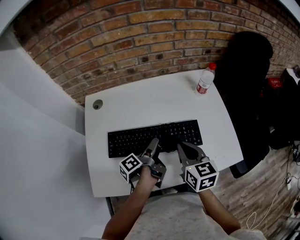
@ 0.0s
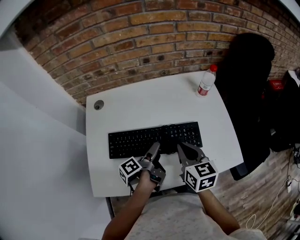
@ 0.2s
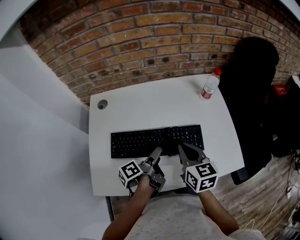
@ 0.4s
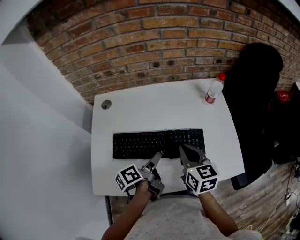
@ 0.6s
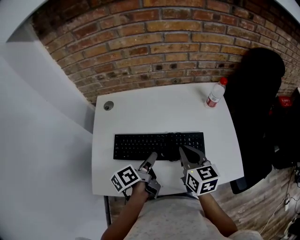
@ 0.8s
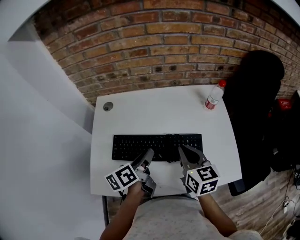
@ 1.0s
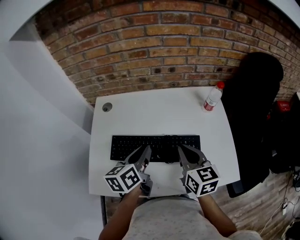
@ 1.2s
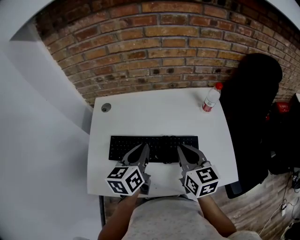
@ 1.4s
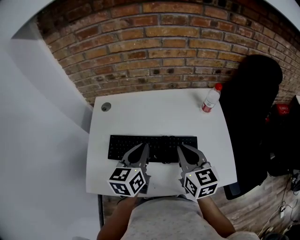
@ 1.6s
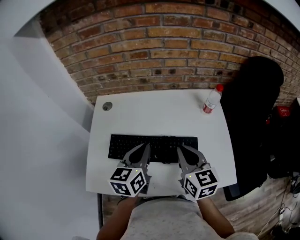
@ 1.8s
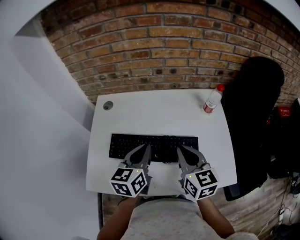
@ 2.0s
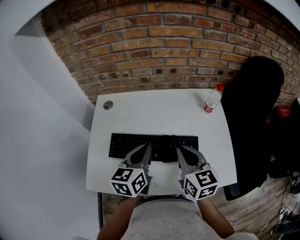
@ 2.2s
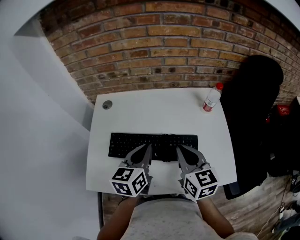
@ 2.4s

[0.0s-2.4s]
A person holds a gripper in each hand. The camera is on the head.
0.0s to 1.2s: The right gripper moves some 5 cm.

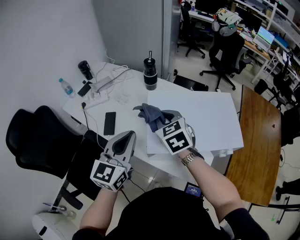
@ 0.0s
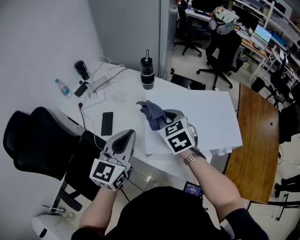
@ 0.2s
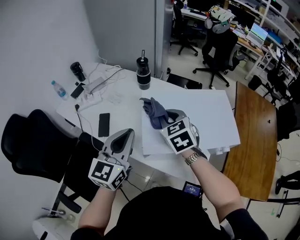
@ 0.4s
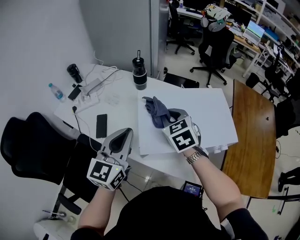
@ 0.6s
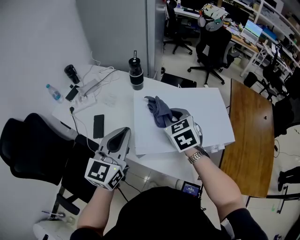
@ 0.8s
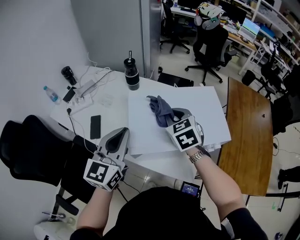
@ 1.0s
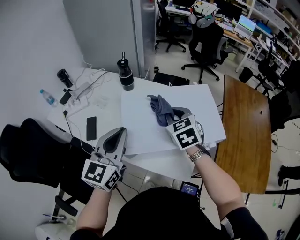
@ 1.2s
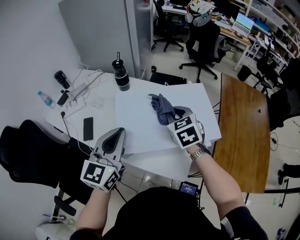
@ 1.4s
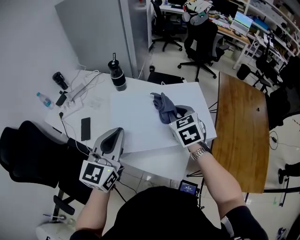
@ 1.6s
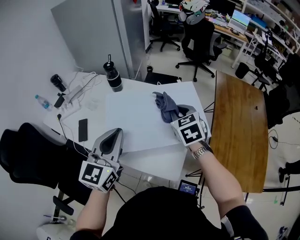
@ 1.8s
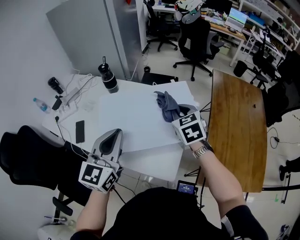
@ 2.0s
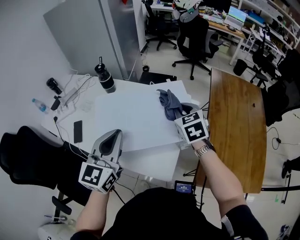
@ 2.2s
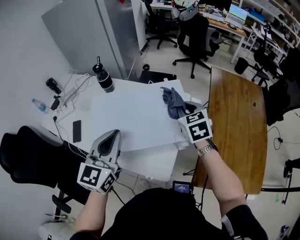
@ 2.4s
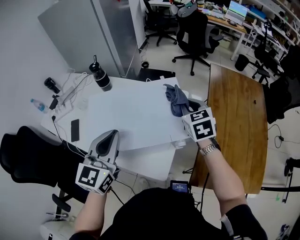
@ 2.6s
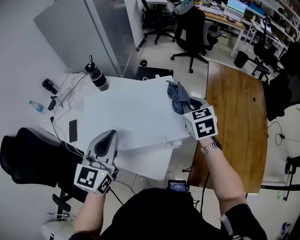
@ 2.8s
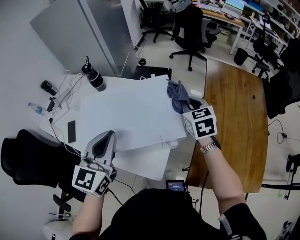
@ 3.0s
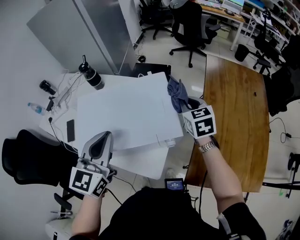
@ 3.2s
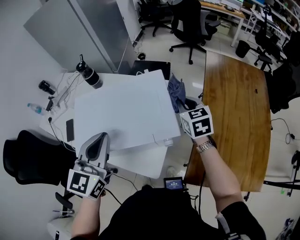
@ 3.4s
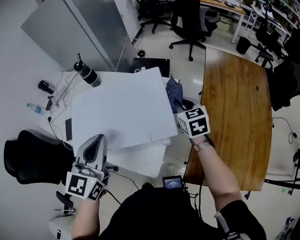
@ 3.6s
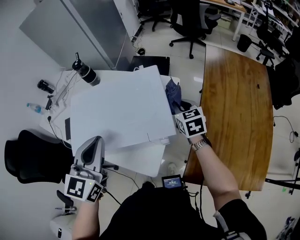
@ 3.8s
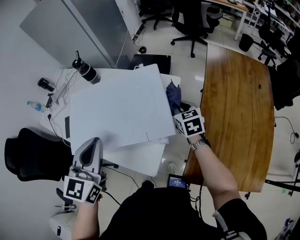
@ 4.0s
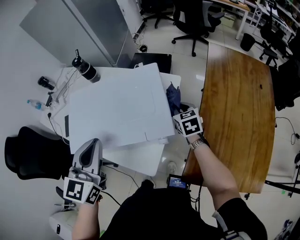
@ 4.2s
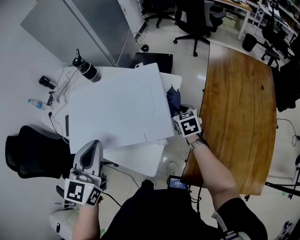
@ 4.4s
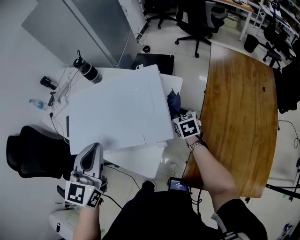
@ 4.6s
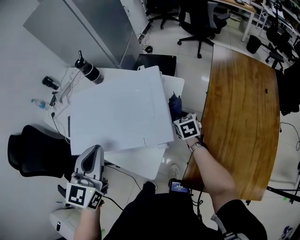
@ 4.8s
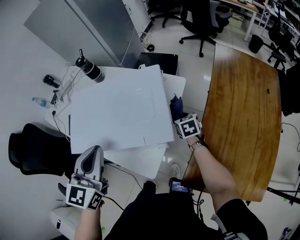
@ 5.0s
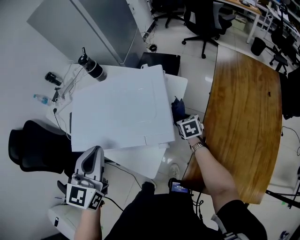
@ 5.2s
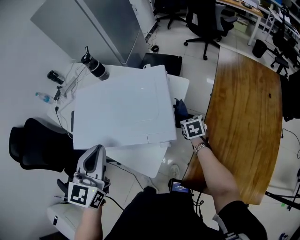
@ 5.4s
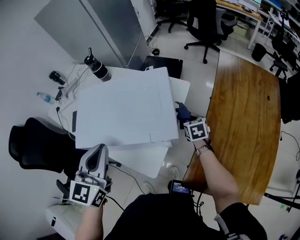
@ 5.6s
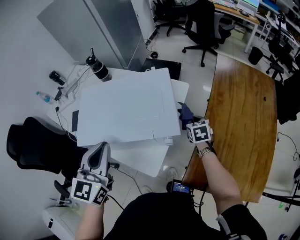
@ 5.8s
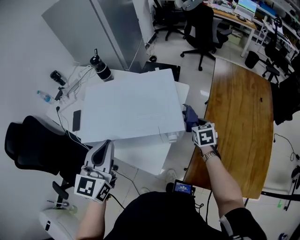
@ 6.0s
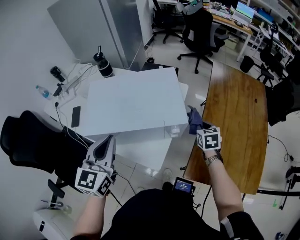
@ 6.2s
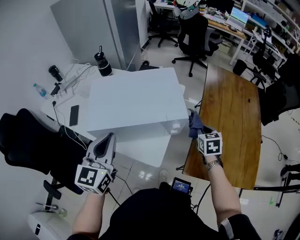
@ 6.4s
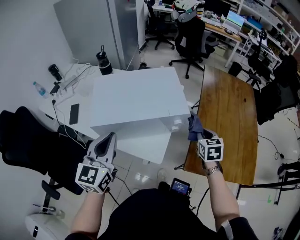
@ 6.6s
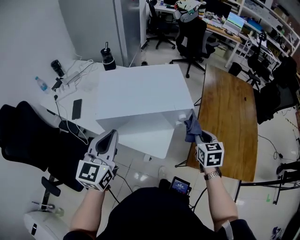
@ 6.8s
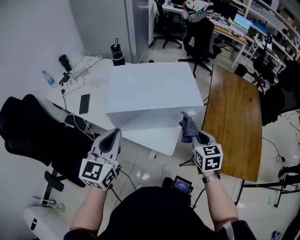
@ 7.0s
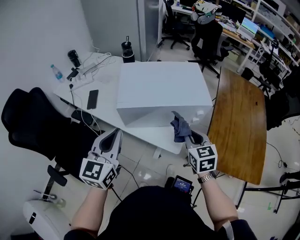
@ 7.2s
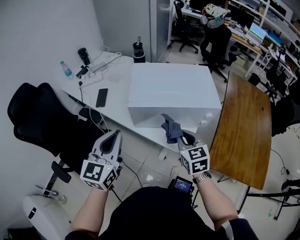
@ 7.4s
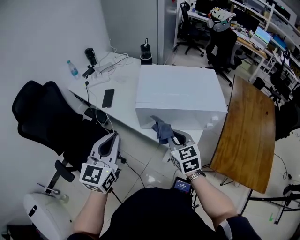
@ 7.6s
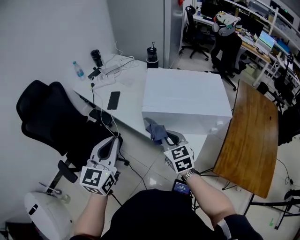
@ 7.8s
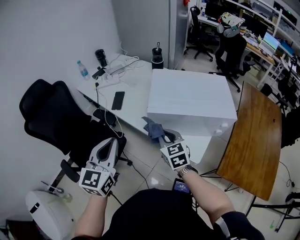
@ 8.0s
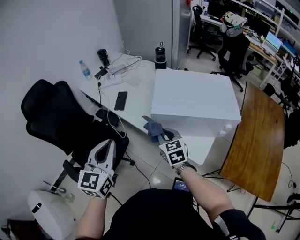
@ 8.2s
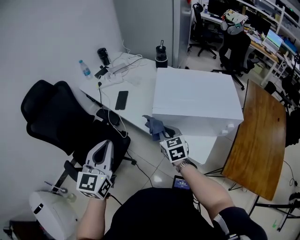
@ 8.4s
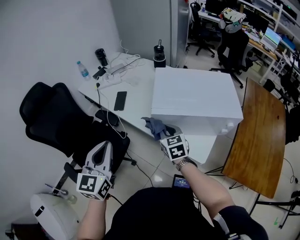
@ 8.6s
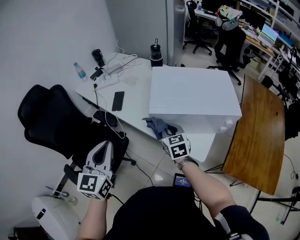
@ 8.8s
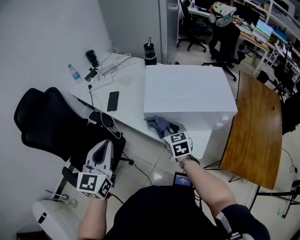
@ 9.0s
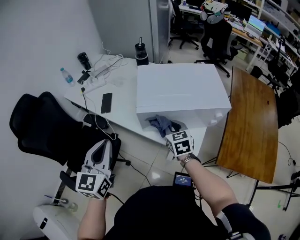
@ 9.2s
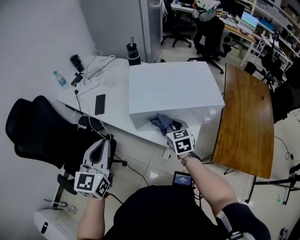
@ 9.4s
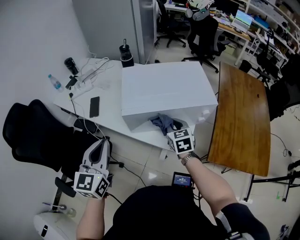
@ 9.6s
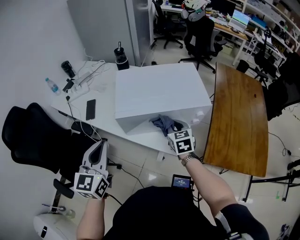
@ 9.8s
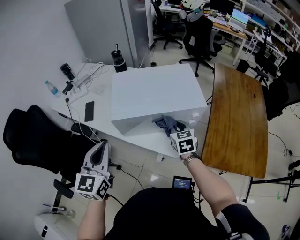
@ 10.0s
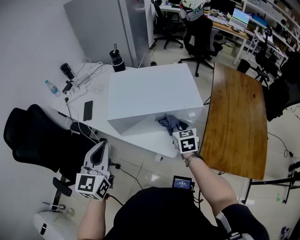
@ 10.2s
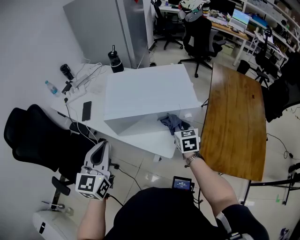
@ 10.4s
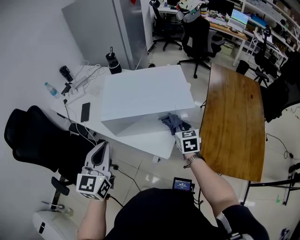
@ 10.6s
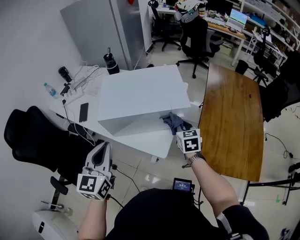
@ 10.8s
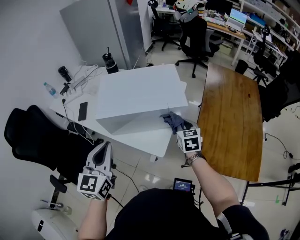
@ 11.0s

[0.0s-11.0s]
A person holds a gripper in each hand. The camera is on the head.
0.0s to 1.6s: The right gripper is displaced to the right by some 20 cm. Meanwhile the left gripper heads to the right, covering about 10 cm.
1.6s to 3.2s: The left gripper heads to the right, covering about 15 cm. Meanwhile the right gripper heads to the right, covering roughly 20 cm.
3.2s to 4.8s: The right gripper is displaced downward by some 20 cm.
4.8s to 6.2s: The left gripper travels backward and to the left by about 5 cm; the right gripper travels backward, upward and to the right by roughly 15 cm.
6.2s to 7.8s: The right gripper shifts by roughly 50 cm, and turns by some 40 degrees, while the left gripper shifts by some 25 cm.
7.8s to 9.4s: The right gripper is displaced to the right and forward by about 10 cm.
9.4s to 11.0s: The grippers both shift to the right by some 20 cm.

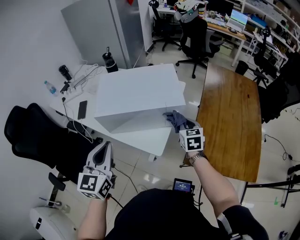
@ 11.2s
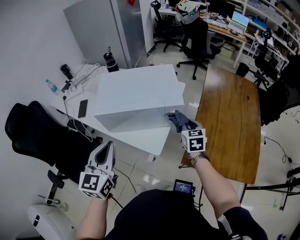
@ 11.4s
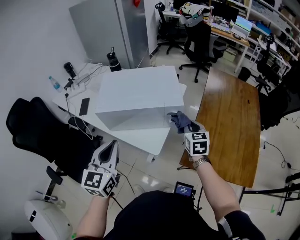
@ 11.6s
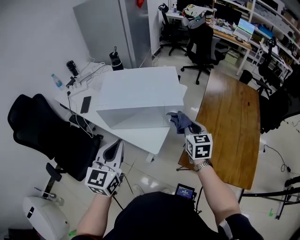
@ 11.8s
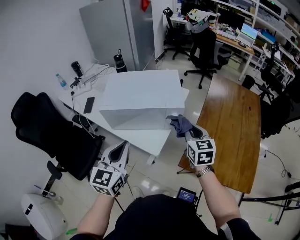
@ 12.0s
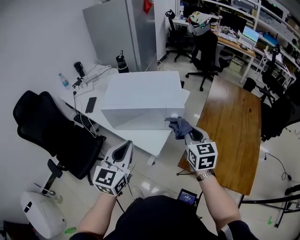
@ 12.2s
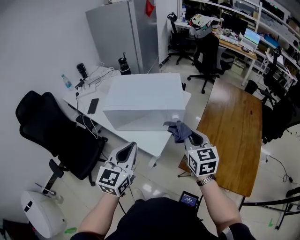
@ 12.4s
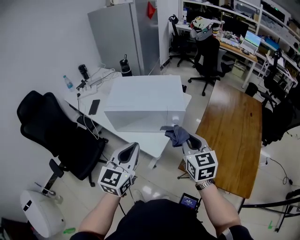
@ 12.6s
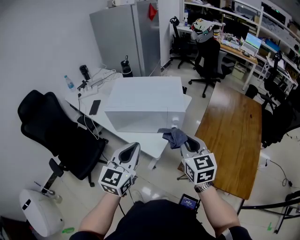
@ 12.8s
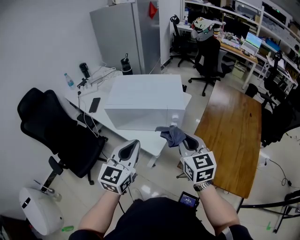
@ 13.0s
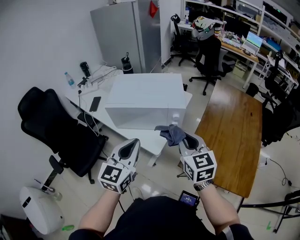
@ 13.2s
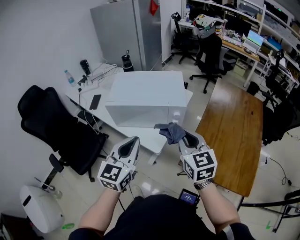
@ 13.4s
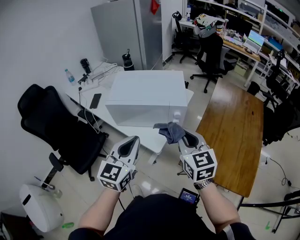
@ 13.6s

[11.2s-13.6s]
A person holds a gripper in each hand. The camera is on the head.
11.2s to 12.4s: The right gripper moves upward and backward, approximately 15 cm. Meanwhile the left gripper goes approximately 10 cm to the right.
12.4s to 13.6s: The right gripper ends up some 5 cm from where it was.

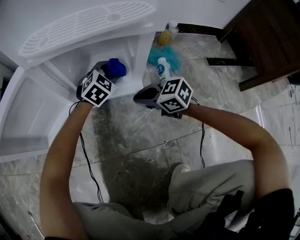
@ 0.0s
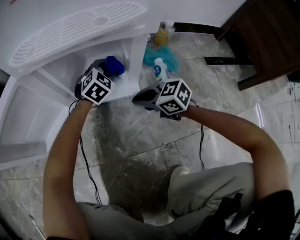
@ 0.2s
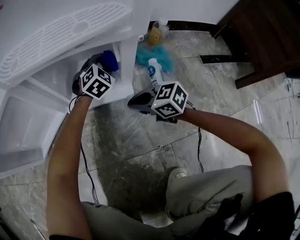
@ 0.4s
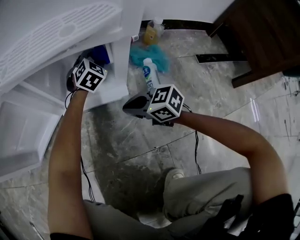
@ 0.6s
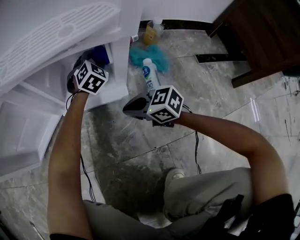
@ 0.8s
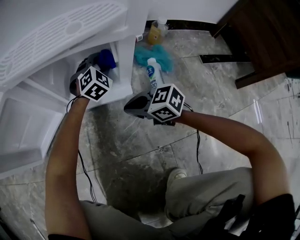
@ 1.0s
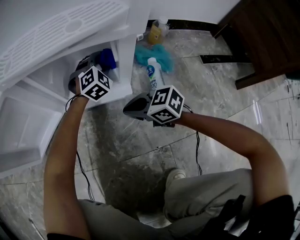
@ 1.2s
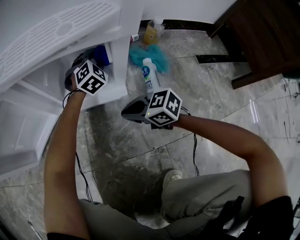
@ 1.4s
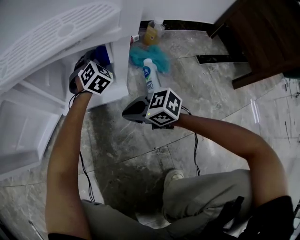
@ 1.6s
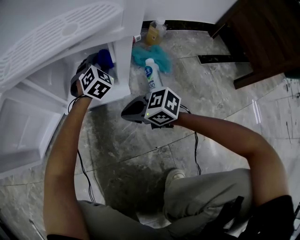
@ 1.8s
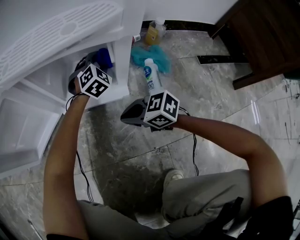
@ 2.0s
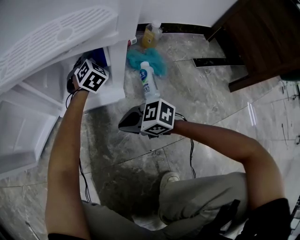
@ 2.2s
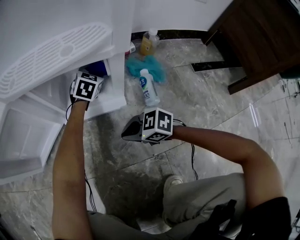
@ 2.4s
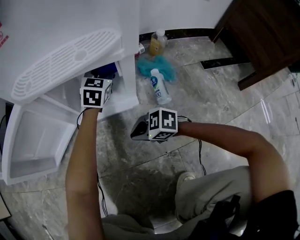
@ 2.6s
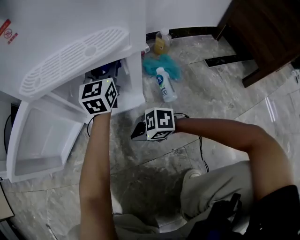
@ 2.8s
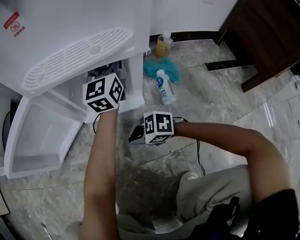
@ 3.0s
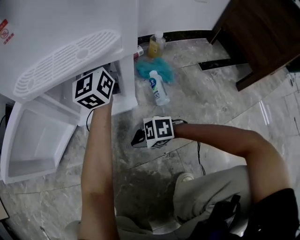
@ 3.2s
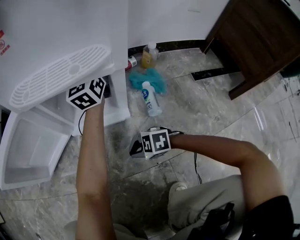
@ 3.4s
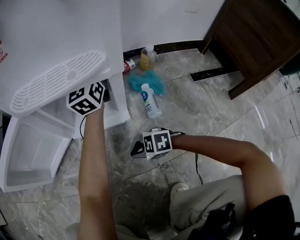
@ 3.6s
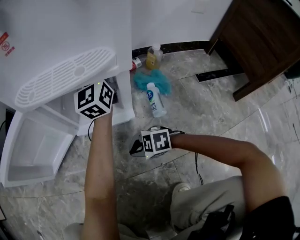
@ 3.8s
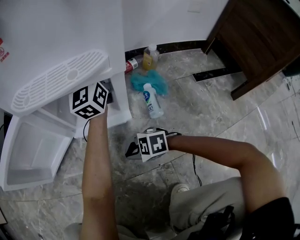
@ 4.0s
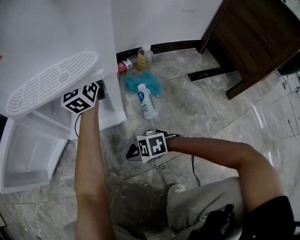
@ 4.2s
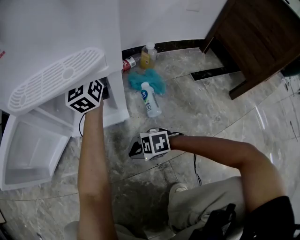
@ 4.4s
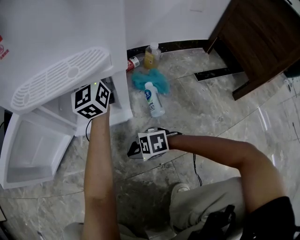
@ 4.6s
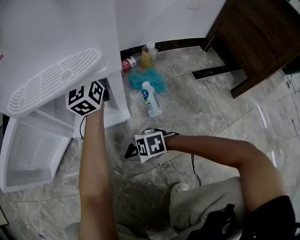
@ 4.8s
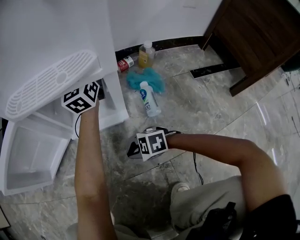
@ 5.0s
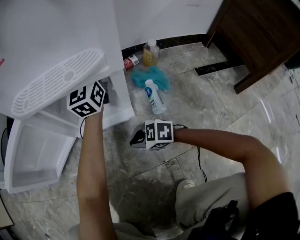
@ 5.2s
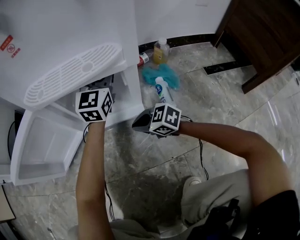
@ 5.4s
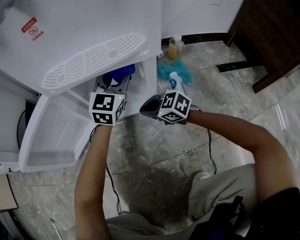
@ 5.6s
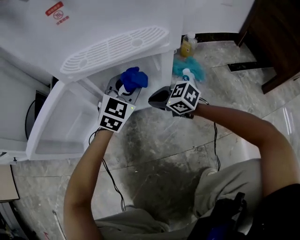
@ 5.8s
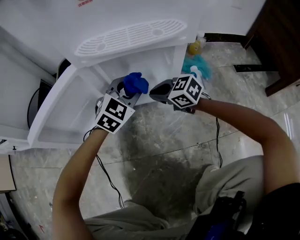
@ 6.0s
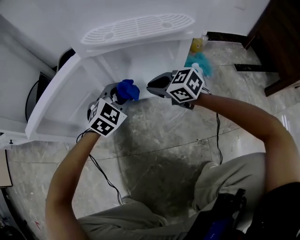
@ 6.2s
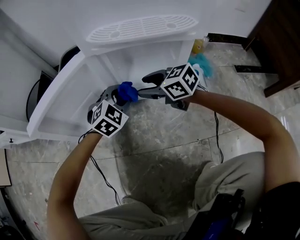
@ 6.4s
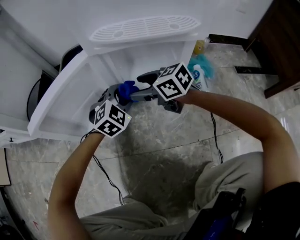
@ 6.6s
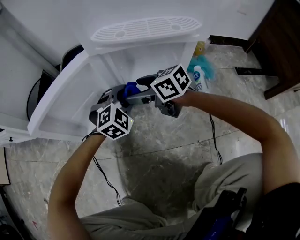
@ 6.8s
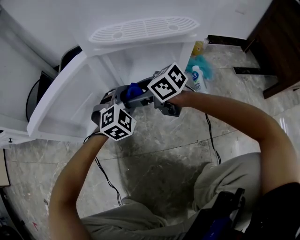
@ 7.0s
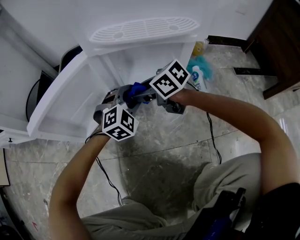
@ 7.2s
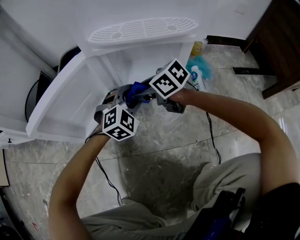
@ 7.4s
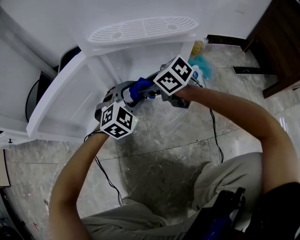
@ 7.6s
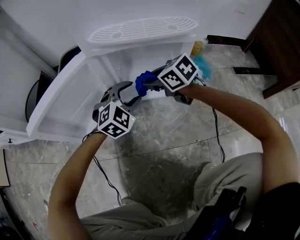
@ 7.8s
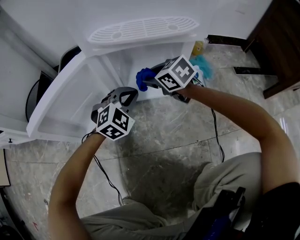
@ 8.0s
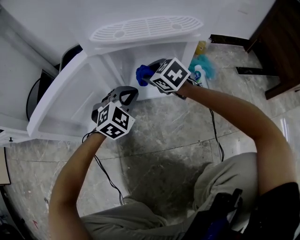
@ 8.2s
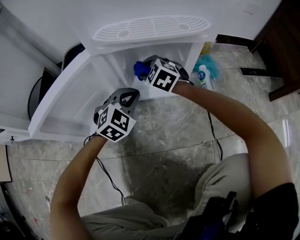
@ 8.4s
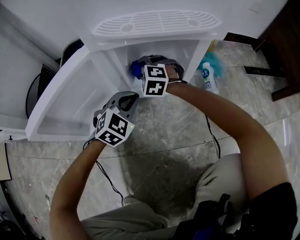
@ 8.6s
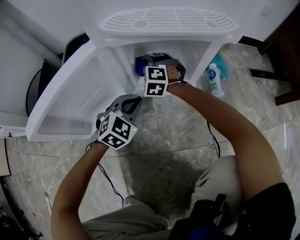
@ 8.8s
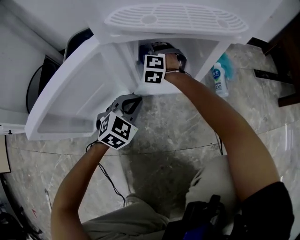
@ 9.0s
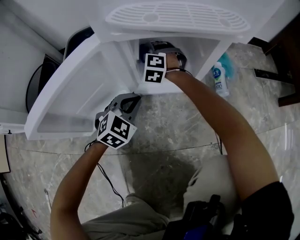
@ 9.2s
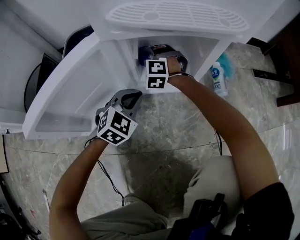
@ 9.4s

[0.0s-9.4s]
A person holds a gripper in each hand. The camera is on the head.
0.0s to 1.6s: The left gripper moves forward and to the right, roughly 10 cm.
1.6s to 3.2s: The right gripper heads to the left and backward, covering approximately 10 cm, and turns by roughly 30 degrees. The left gripper heads upward, covering roughly 25 cm, and points its fingers approximately 50 degrees further upward.
3.2s to 4.8s: There are only small adjustments of the grippers.
4.8s to 6.2s: The right gripper changes place by roughly 20 cm, and changes its angle by about 40 degrees; the left gripper ends up about 30 cm from where it was, and angles its fingers downward, by roughly 50 degrees.
6.2s to 7.8s: The left gripper opens its fingers. Meanwhile the right gripper reaches roughly 10 cm to the left, then returns, and opens its fingers.
7.8s to 9.4s: The left gripper goes about 5 cm to the left, and closes, while the right gripper travels forward, downward and to the left by approximately 20 cm, and rolls counterclockwise, seen from behind, by some 60 degrees.
